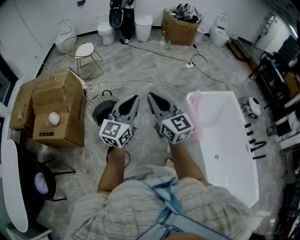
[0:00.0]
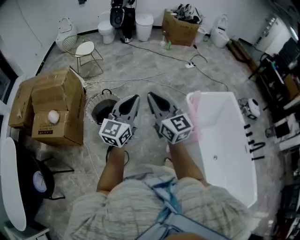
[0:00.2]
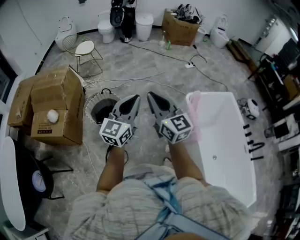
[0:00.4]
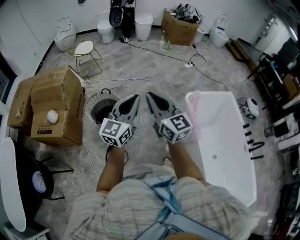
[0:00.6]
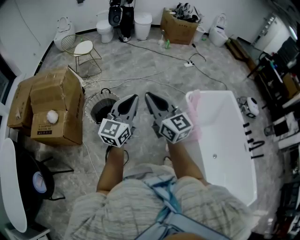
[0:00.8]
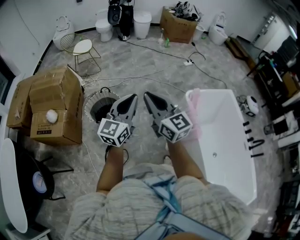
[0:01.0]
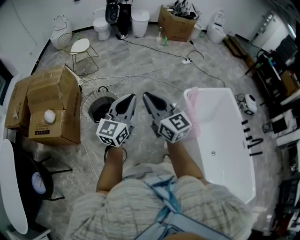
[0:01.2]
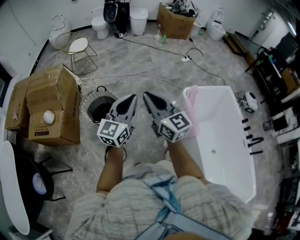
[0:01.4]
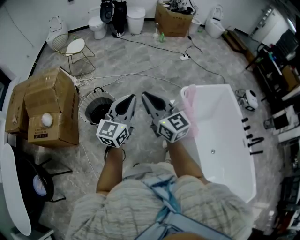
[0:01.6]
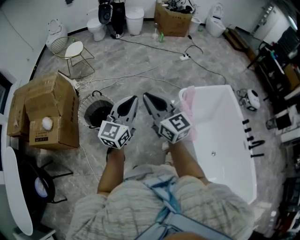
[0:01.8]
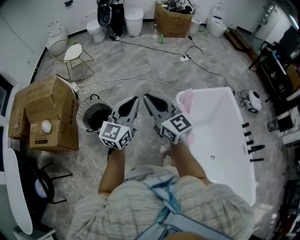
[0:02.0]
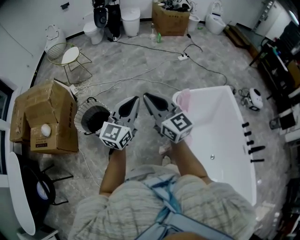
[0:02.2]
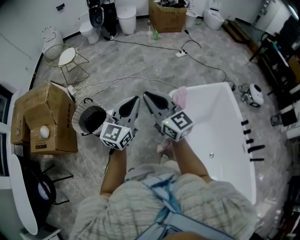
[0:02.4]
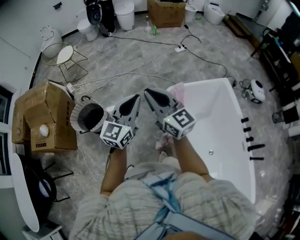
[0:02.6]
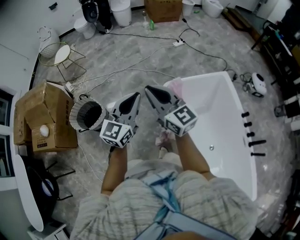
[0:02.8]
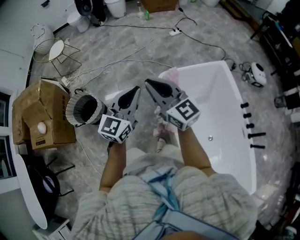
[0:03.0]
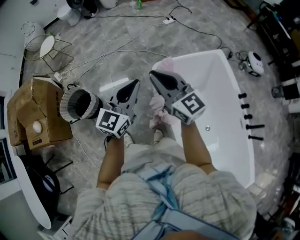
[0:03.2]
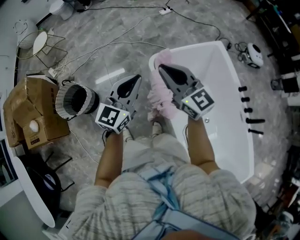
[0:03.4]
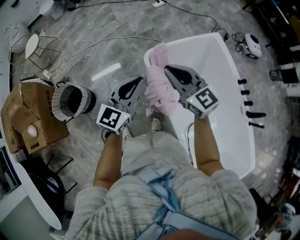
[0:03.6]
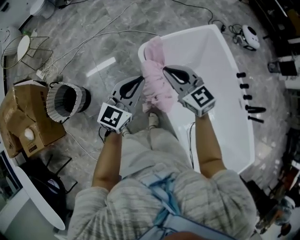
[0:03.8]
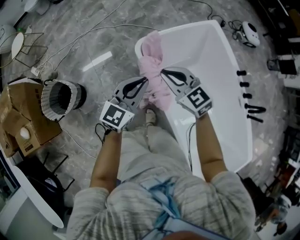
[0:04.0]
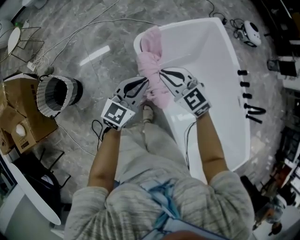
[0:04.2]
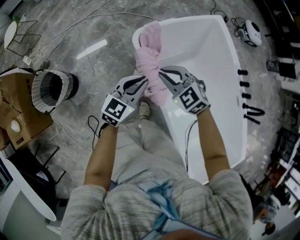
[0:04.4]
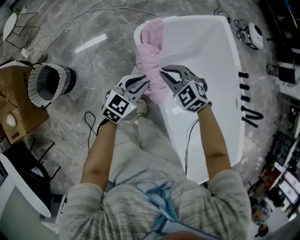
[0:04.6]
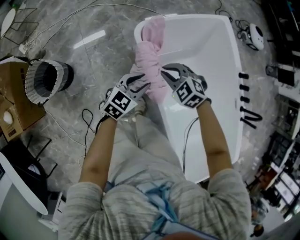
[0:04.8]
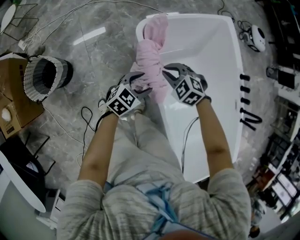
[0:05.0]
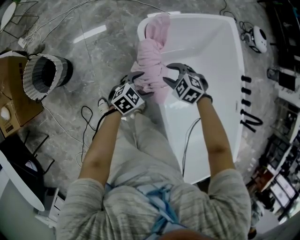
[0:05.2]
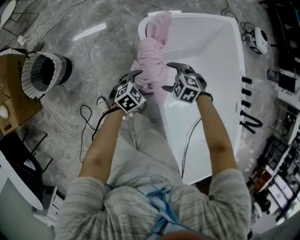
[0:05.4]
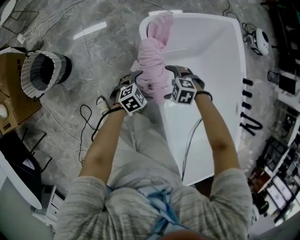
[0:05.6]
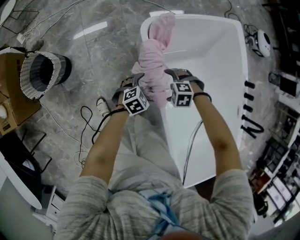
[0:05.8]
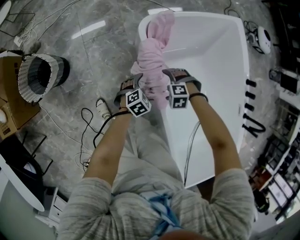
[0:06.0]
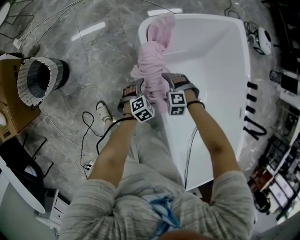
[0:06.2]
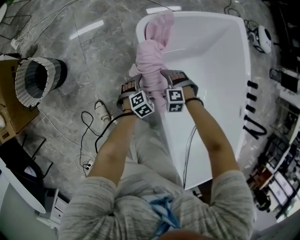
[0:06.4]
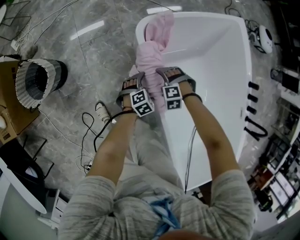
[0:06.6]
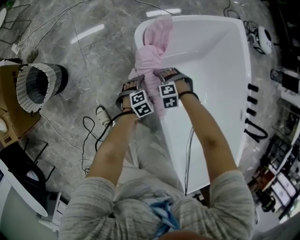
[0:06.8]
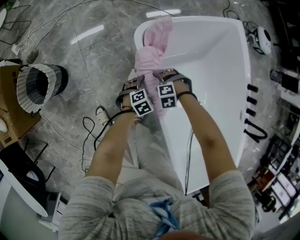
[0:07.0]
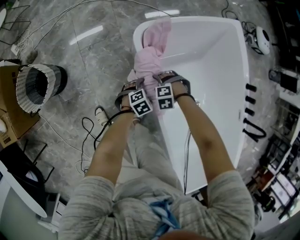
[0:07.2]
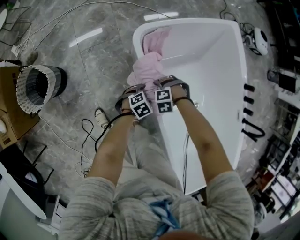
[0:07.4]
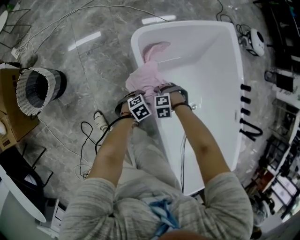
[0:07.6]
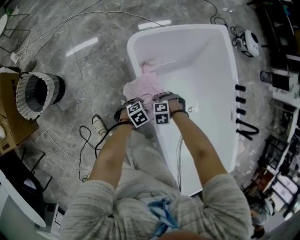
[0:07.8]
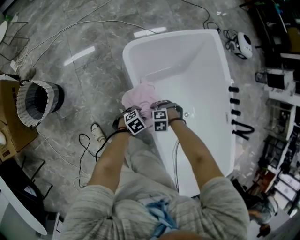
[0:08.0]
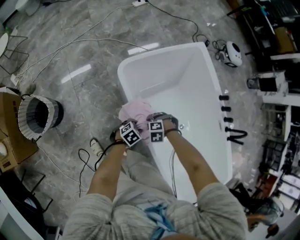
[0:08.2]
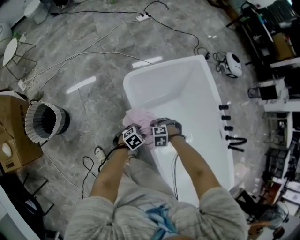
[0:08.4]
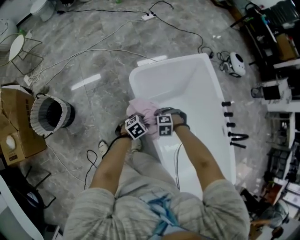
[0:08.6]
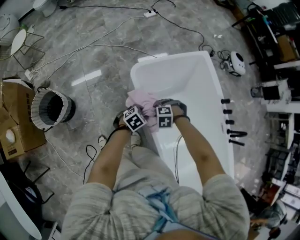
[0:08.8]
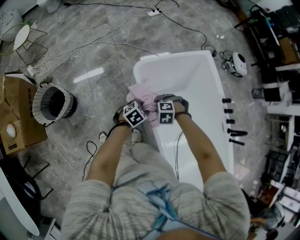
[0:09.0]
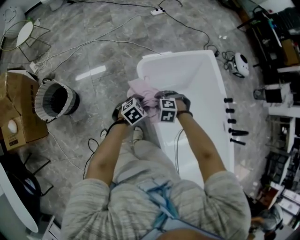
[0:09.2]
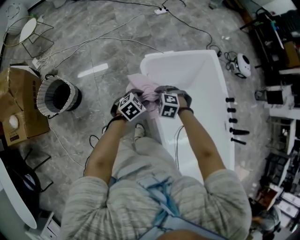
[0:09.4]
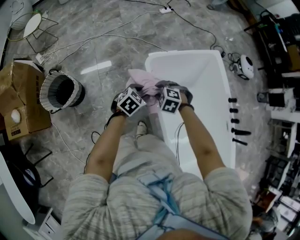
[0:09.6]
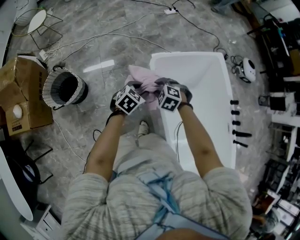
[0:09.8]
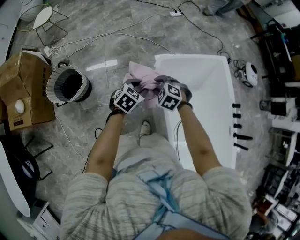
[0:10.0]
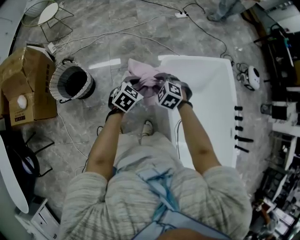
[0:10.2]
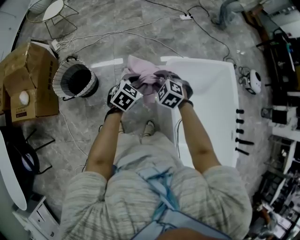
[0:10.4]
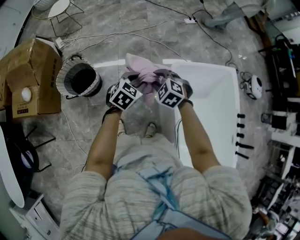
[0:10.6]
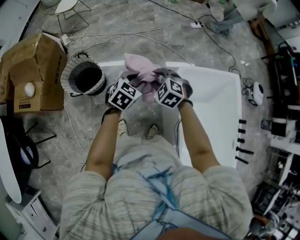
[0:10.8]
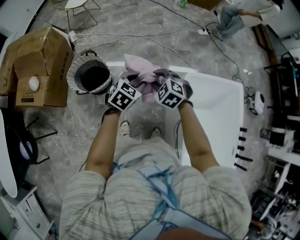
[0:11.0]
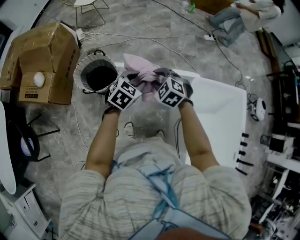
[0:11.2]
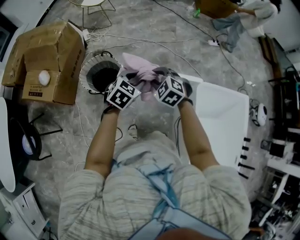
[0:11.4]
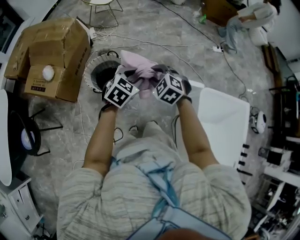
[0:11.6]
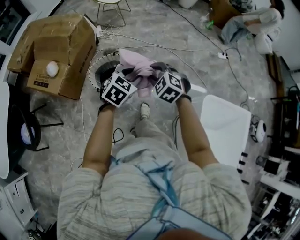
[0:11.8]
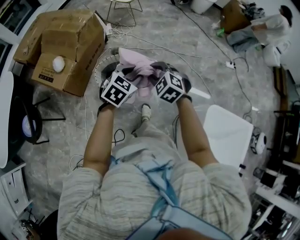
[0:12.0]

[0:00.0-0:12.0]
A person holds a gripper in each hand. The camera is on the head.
0:00.0 to 0:01.6: The left gripper shifts by roughly 5 cm.
0:01.6 to 0:03.0: Both grippers move to the right, approximately 35 cm.
0:03.0 to 0:04.4: The grippers both shift downward and to the right by about 30 cm. The right gripper points its fingers approximately 40 degrees further downward, while the left gripper turns by about 30 degrees.
0:04.4 to 0:06.0: Both grippers travel together downward, about 30 cm. The right gripper points its fingers about 40 degrees further downward, and opens its fingers, while the left gripper tilts its fingers approximately 40 degrees downward, and opens.
0:06.0 to 0:07.6: The right gripper closes up, while the left gripper closes its fingers.
0:07.6 to 0:09.0: The two grippers go some 20 cm upward.
0:09.0 to 0:10.4: The right gripper ends up about 25 cm from where it was, and turns by some 30 degrees, while the left gripper changes place by approximately 25 cm, and swivels roughly 30 degrees.
0:10.4 to 0:12.0: Both grippers are carried some 40 cm. The left gripper swivels about 30 degrees. Meanwhile the right gripper changes its angle by about 30 degrees.

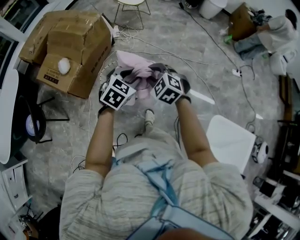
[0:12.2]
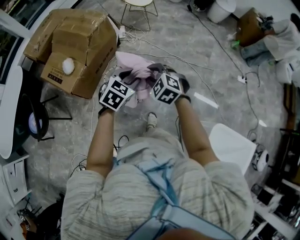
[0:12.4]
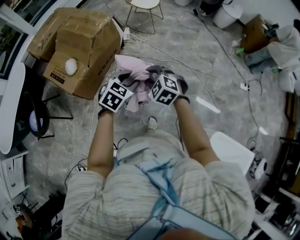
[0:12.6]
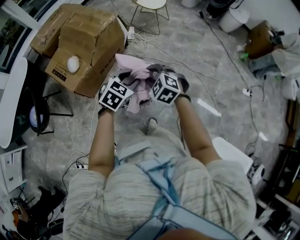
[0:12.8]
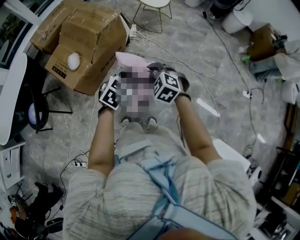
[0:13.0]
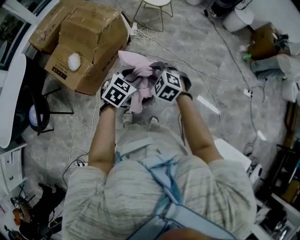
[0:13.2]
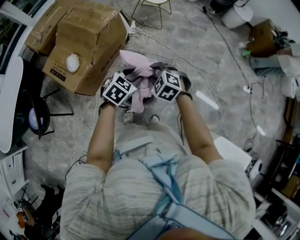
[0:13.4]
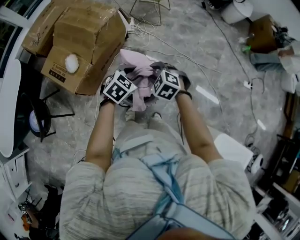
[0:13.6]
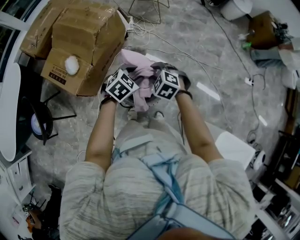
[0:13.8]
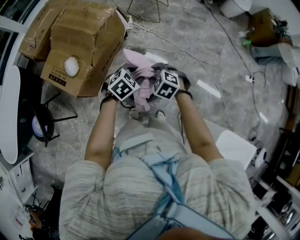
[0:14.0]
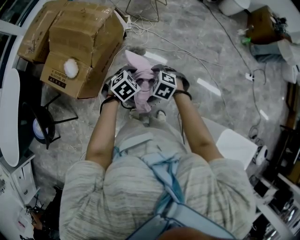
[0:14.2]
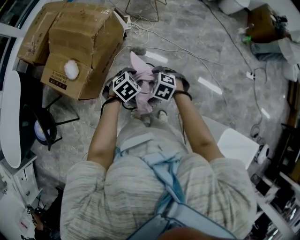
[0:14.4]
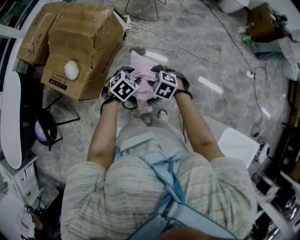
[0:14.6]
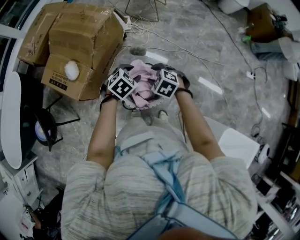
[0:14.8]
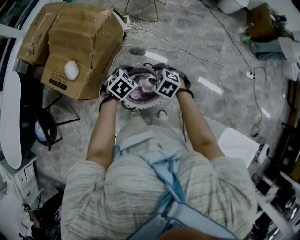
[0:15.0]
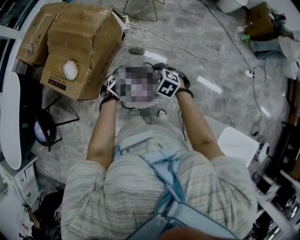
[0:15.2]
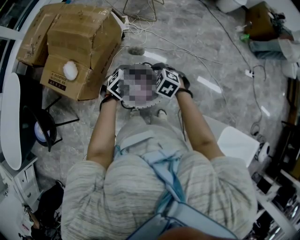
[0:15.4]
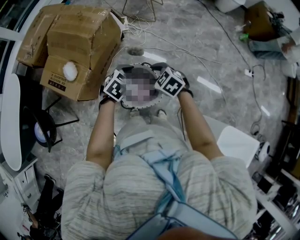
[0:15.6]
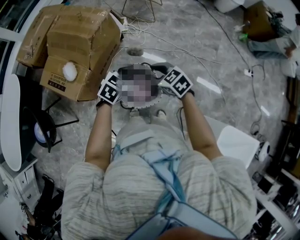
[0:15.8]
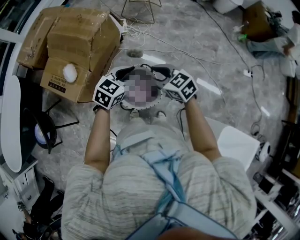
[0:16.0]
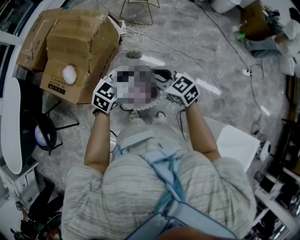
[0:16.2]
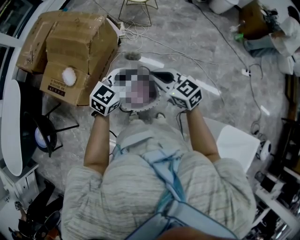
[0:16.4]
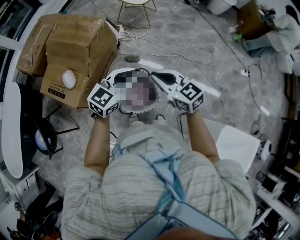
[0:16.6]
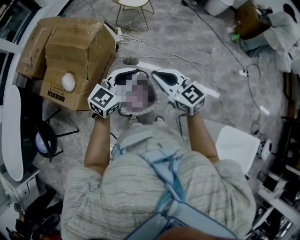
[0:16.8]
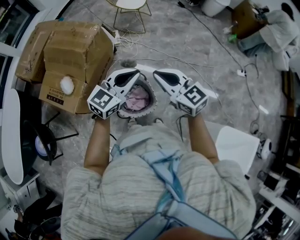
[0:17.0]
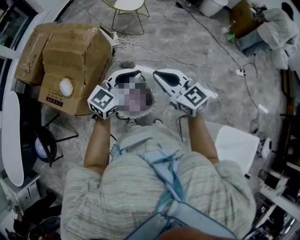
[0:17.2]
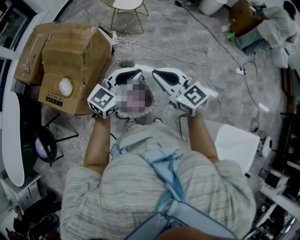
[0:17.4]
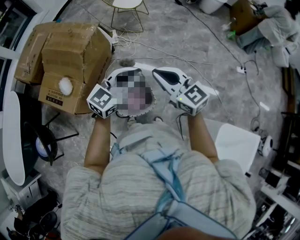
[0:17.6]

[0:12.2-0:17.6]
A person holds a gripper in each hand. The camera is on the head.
0:12.2 to 0:13.6: The two grippers go roughly 20 cm forward, to the left and downward.
0:13.6 to 0:15.0: The left gripper moves downward, roughly 5 cm.
0:15.0 to 0:16.2: The two grippers go roughly 10 cm upward. The right gripper tilts its fingers roughly 30 degrees upward; the left gripper tips its fingers upward by some 30 degrees.
0:16.2 to 0:17.6: Both grippers travel together upward and to the right, approximately 10 cm. The right gripper swivels about 20 degrees, while the left gripper rotates some 20 degrees.

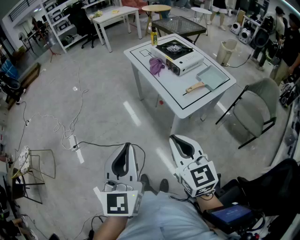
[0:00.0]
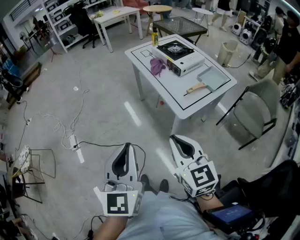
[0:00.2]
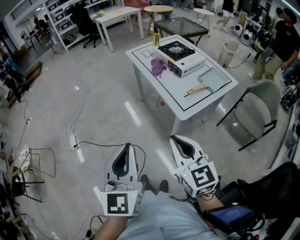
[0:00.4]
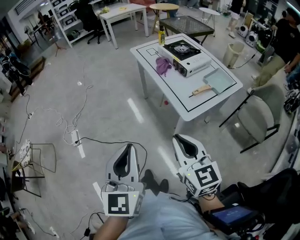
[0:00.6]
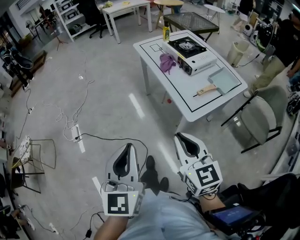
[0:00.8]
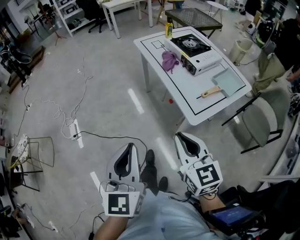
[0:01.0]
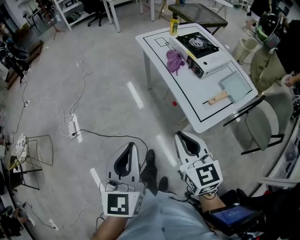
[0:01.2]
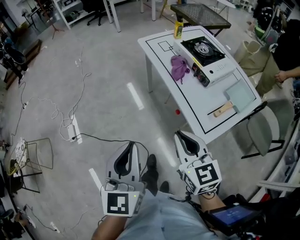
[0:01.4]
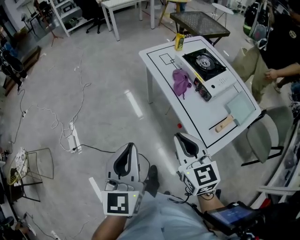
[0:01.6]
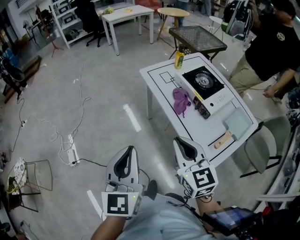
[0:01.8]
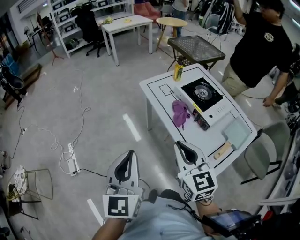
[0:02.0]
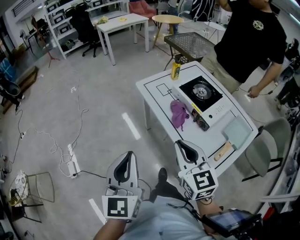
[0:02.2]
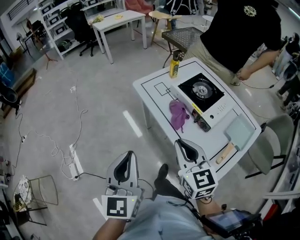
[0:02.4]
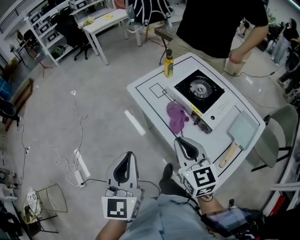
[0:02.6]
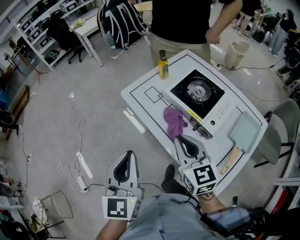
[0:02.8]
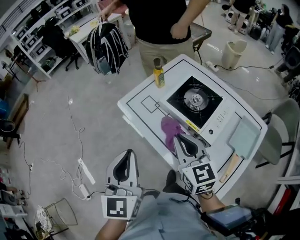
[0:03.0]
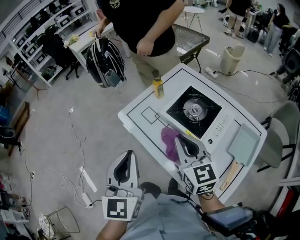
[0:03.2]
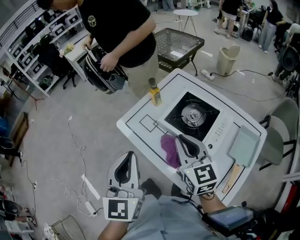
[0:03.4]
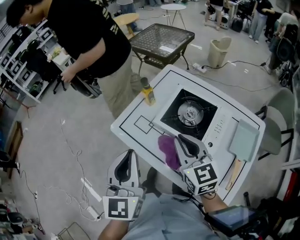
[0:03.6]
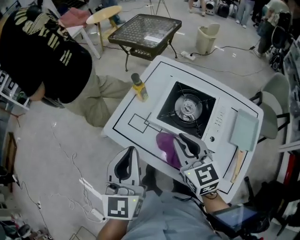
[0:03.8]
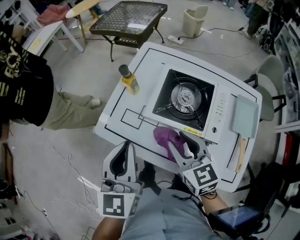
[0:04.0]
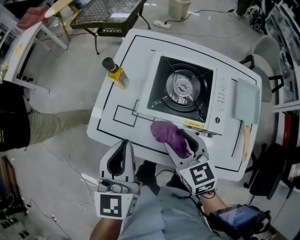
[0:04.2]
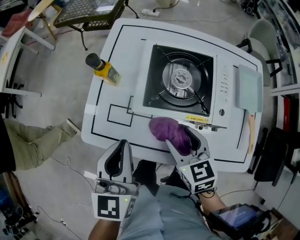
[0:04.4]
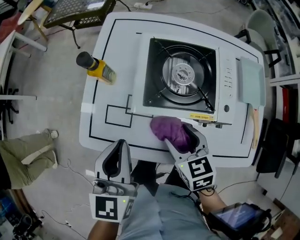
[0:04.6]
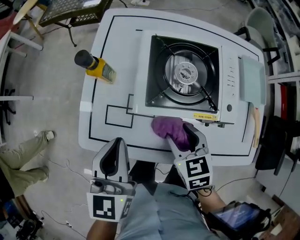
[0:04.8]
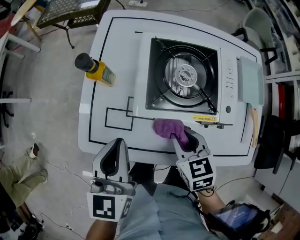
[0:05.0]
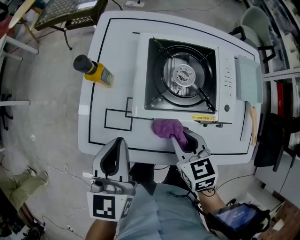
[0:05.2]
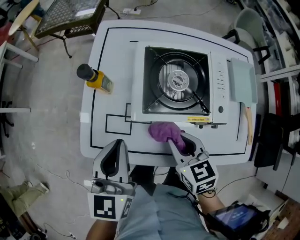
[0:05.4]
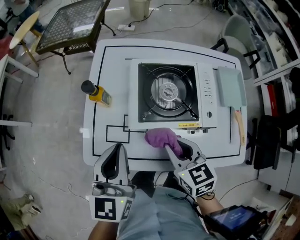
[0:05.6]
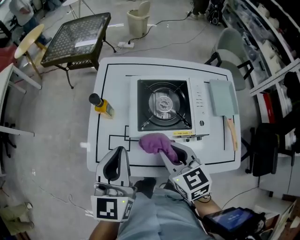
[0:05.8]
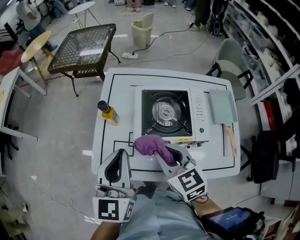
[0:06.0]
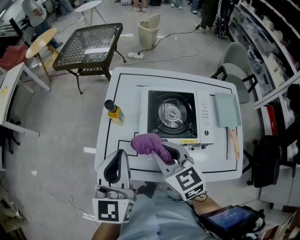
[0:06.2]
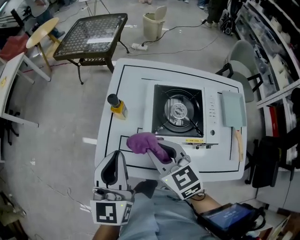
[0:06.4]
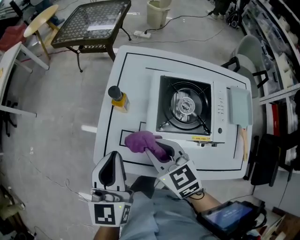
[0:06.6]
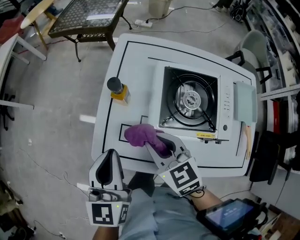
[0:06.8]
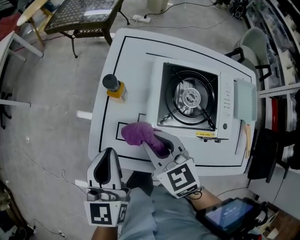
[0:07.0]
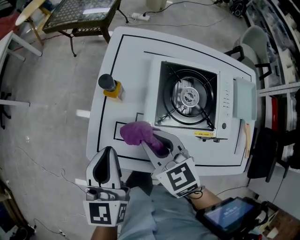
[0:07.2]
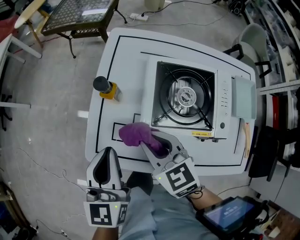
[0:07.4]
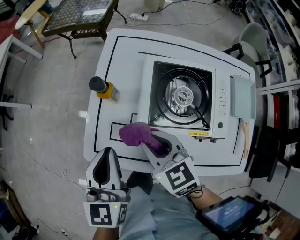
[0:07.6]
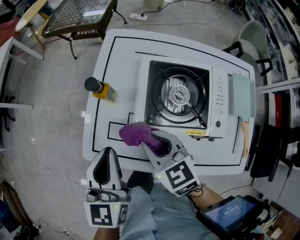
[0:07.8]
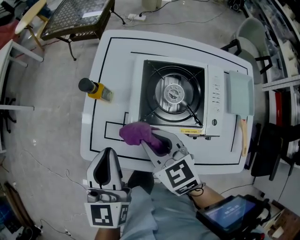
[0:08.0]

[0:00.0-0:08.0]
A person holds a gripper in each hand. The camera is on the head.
0:00.0 to 0:01.6: The grippers both shift forward by about 30 cm.
0:01.6 to 0:03.2: Both grippers travel together forward, approximately 35 cm.
0:03.2 to 0:04.8: The right gripper heads downward, covering roughly 25 cm, points its fingers approximately 40 degrees further downward, and opens its fingers. Meanwhile the left gripper ends up about 30 cm from where it was, and swivels some 40 degrees.
0:04.8 to 0:06.4: The right gripper is displaced upward and to the left by approximately 20 cm, swivels approximately 20 degrees, and closes up. The left gripper goes approximately 10 cm upward.
0:06.4 to 0:08.0: Both grippers travel together downward, roughly 5 cm.